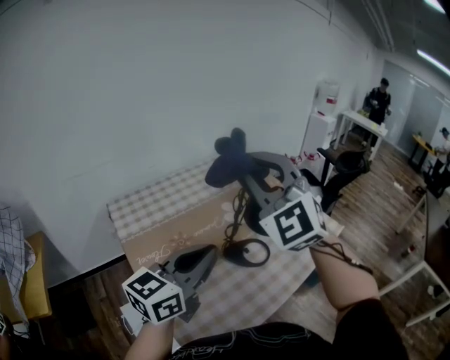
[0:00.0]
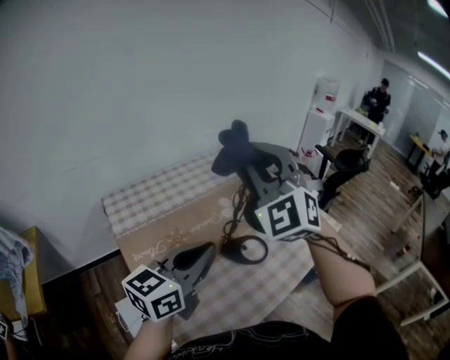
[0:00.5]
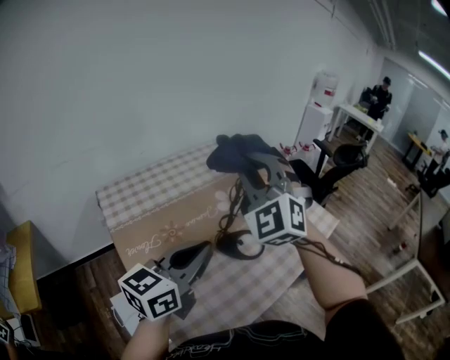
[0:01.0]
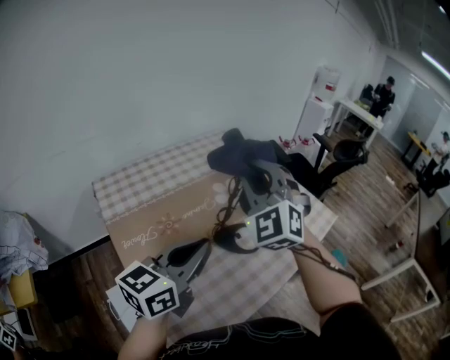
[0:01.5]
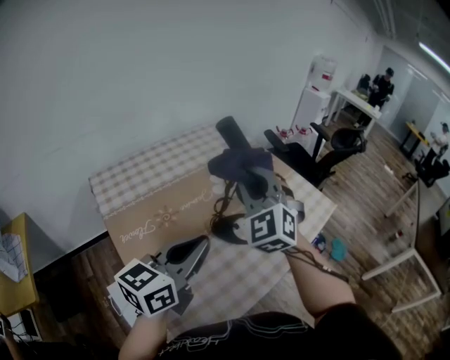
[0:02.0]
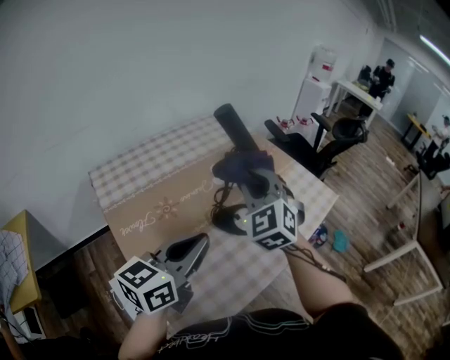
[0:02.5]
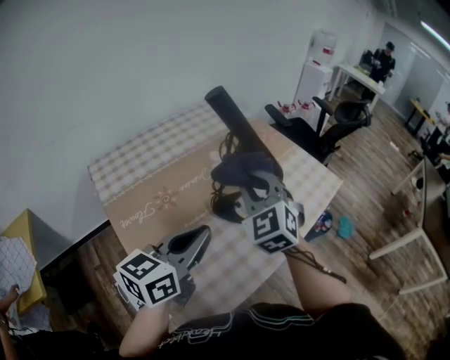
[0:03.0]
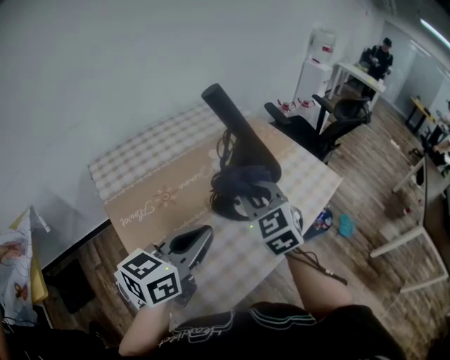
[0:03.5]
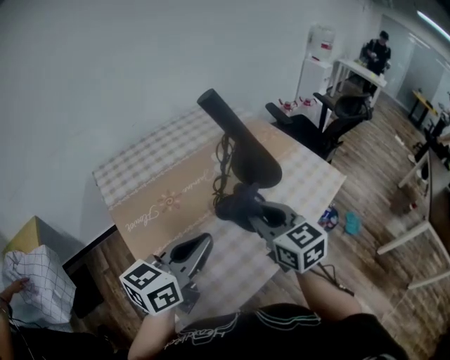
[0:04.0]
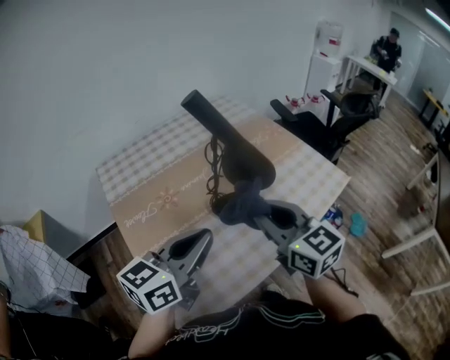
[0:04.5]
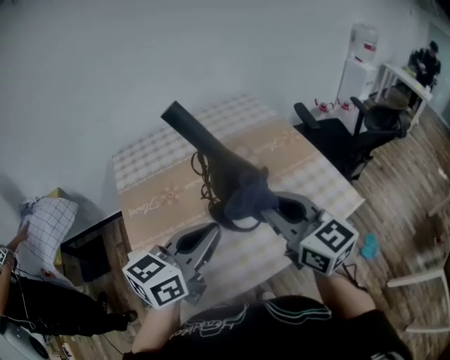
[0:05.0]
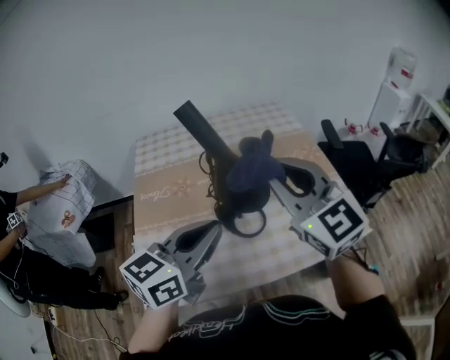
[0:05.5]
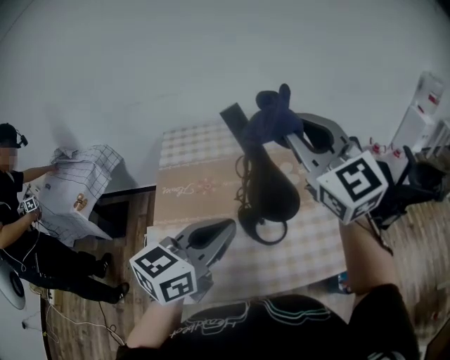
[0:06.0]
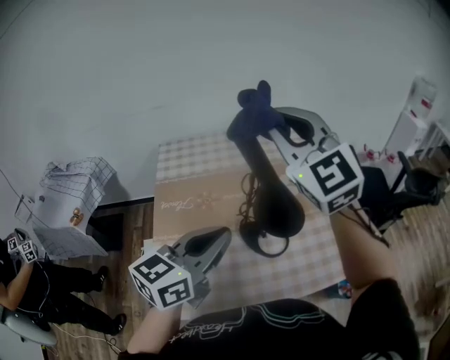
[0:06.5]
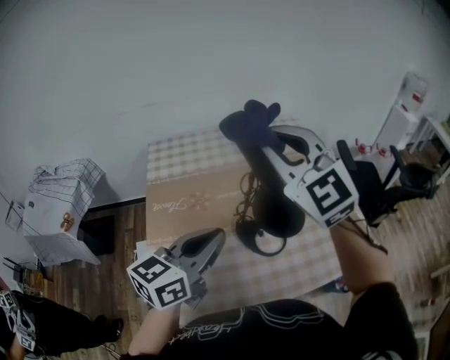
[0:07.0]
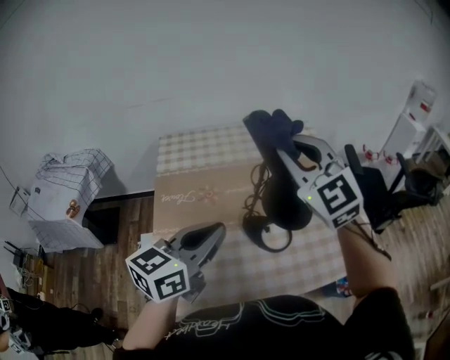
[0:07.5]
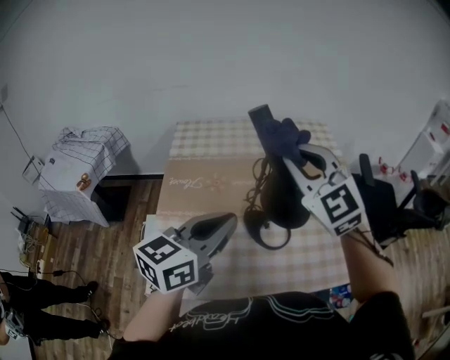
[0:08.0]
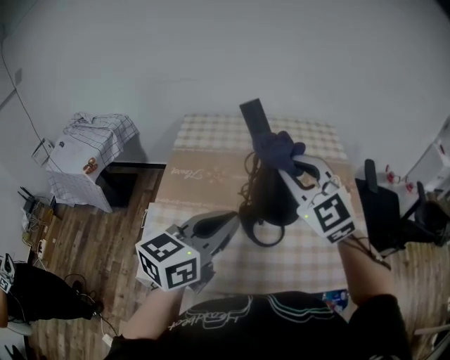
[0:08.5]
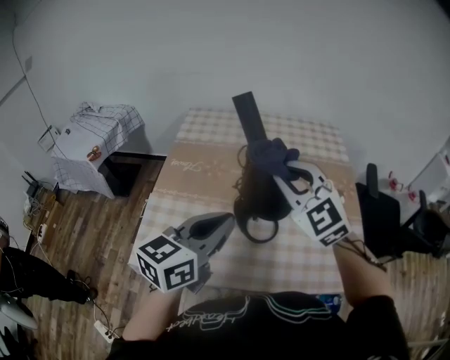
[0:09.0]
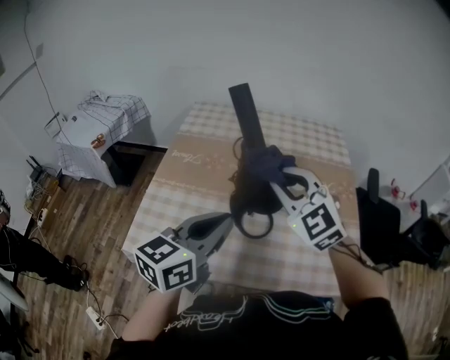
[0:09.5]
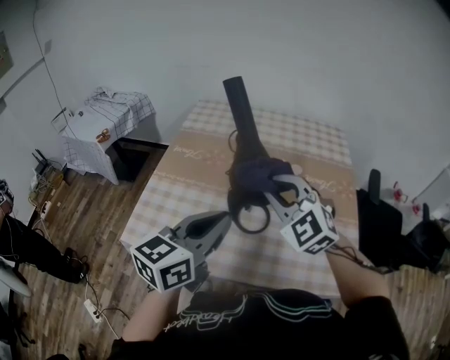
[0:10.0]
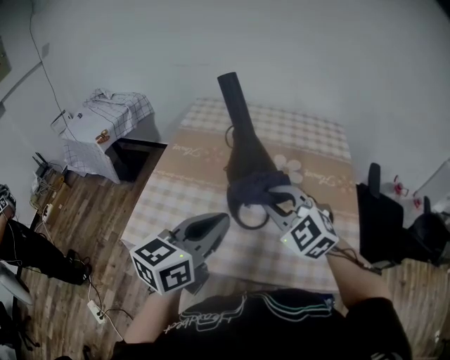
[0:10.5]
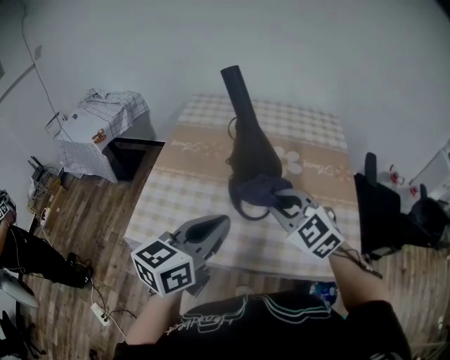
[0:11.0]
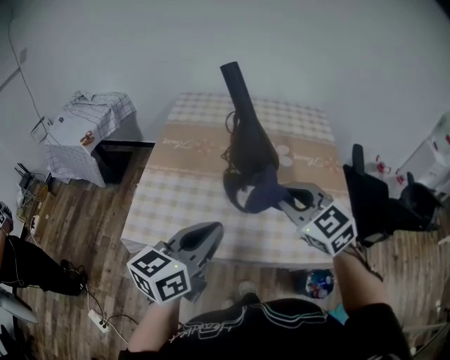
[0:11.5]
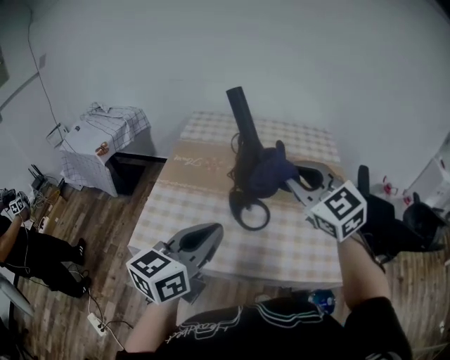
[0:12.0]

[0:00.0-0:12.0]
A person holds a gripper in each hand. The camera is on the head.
0:00.0 to 0:02.0: The left gripper moves downward, some 5 cm, while the right gripper heads downward, covering roughly 15 cm.
0:02.0 to 0:04.0: The right gripper moves downward, backward and to the right, approximately 15 cm, and twists approximately 50 degrees clockwise, seen from behind. Meanwhile the left gripper changes place by about 5 cm.
0:04.0 to 0:06.0: The right gripper is displaced upward by approximately 25 cm, and swivels about 40 degrees; the left gripper moves approximately 15 cm, and rotates approximately 30 degrees.
0:06.0 to 0:08.0: The right gripper travels downward by approximately 10 cm.
0:08.0 to 0:10.0: The right gripper goes approximately 15 cm downward, backward and to the right, and swivels roughly 20 degrees. The left gripper shifts approximately 15 cm to the right and backward.
0:10.0 to 0:12.0: The right gripper travels upward by approximately 10 cm, and turns by approximately 20 degrees. The left gripper goes approximately 5 cm backward.

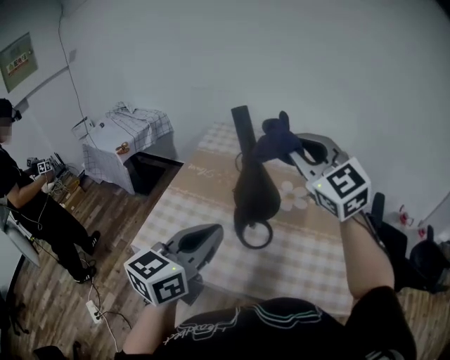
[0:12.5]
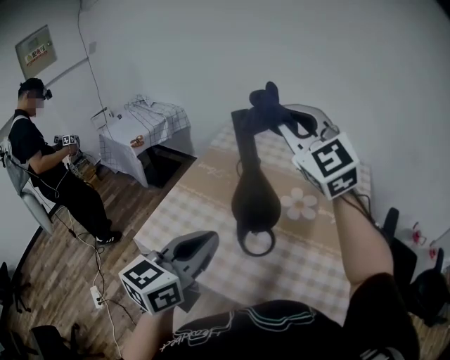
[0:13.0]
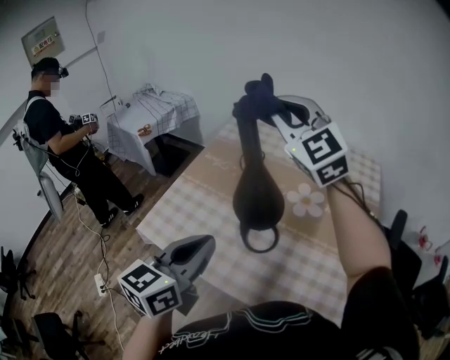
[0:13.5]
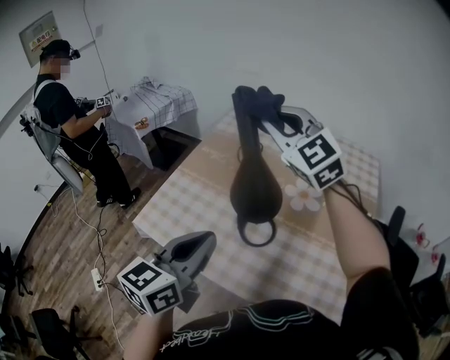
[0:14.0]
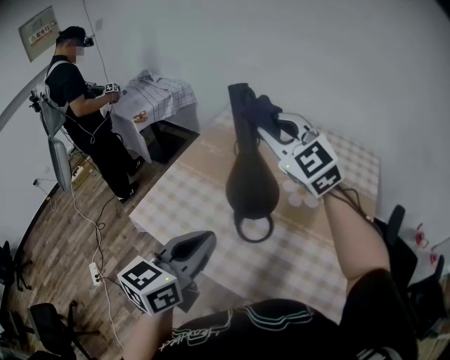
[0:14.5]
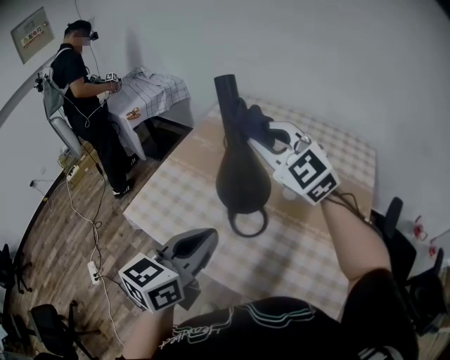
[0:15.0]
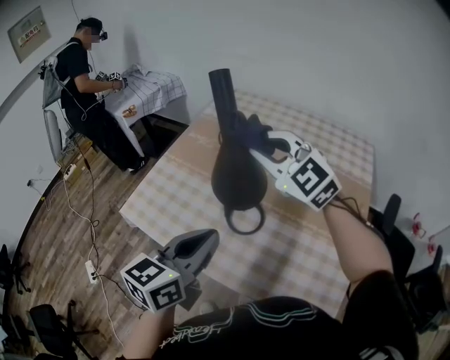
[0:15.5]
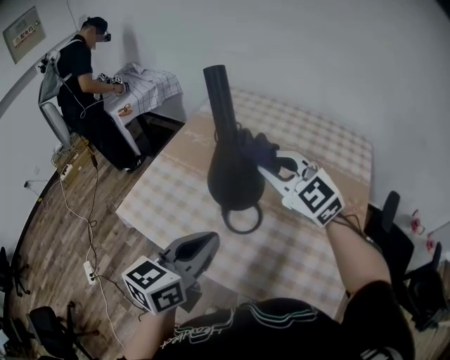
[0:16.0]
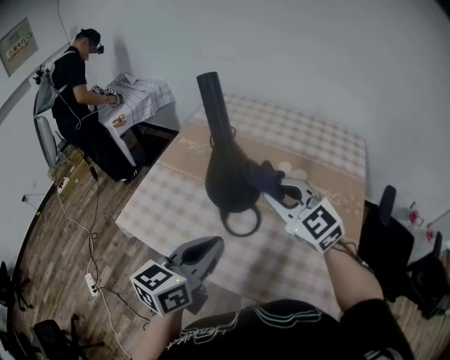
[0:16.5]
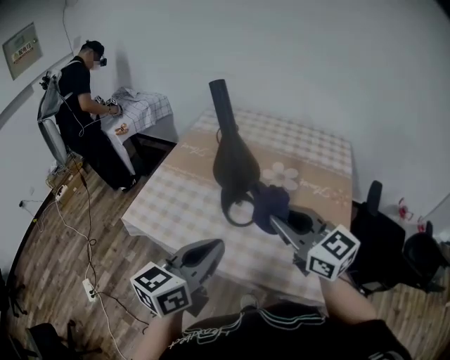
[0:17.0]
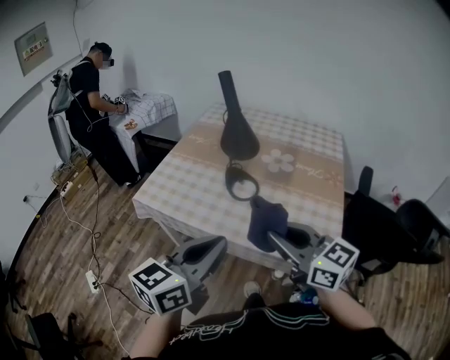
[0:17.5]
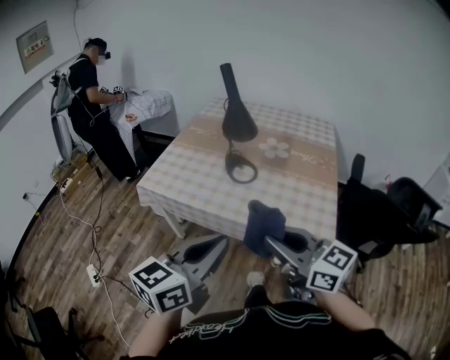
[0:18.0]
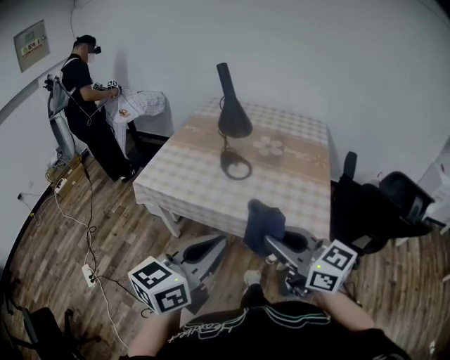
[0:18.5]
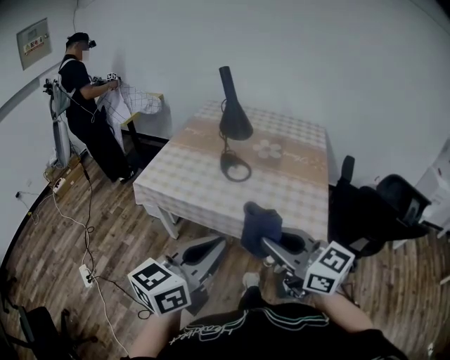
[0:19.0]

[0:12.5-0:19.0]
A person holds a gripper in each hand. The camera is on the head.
0:12.5 to 0:14.5: The left gripper shifts some 5 cm downward. The right gripper travels forward and downward by about 10 cm.
0:14.5 to 0:17.0: The left gripper goes roughly 10 cm backward. Meanwhile the right gripper travels backward by about 25 cm, and rotates about 40 degrees.
0:17.0 to 0:19.0: The two grippers go approximately 20 cm backward.

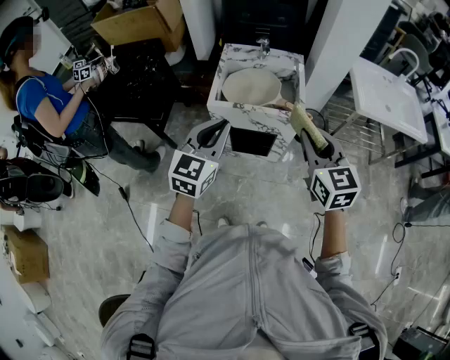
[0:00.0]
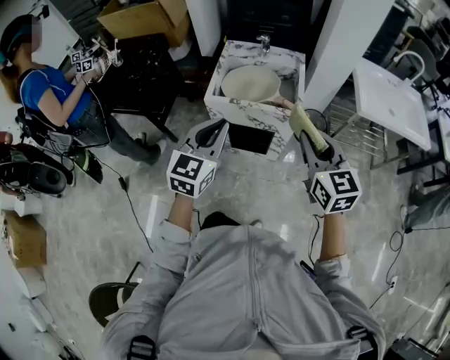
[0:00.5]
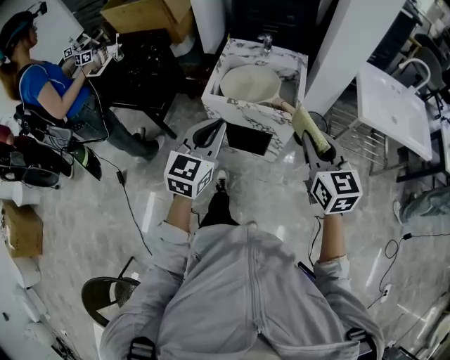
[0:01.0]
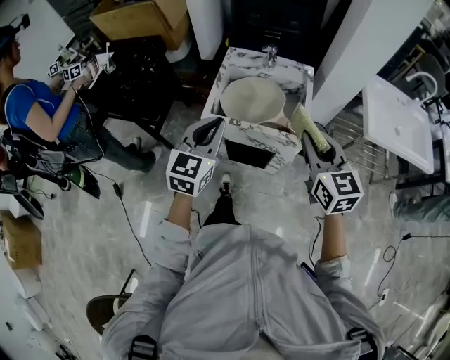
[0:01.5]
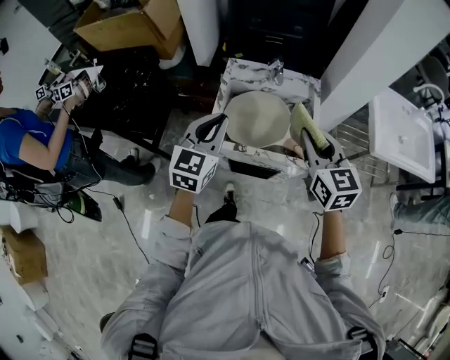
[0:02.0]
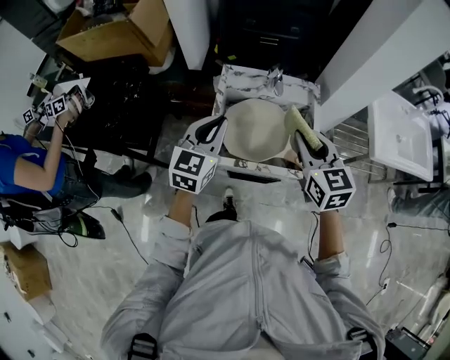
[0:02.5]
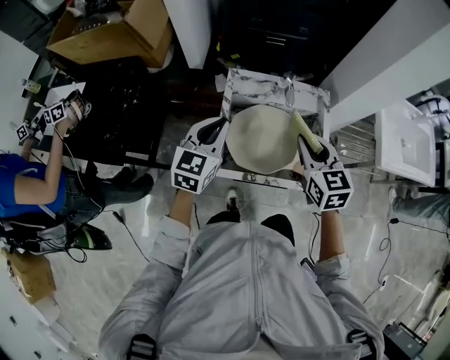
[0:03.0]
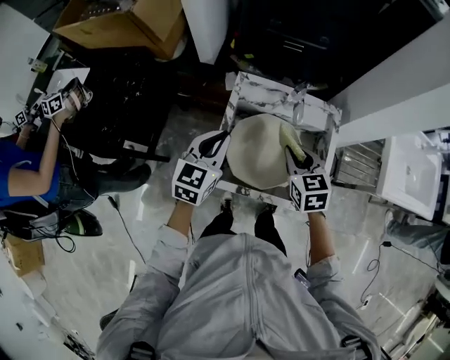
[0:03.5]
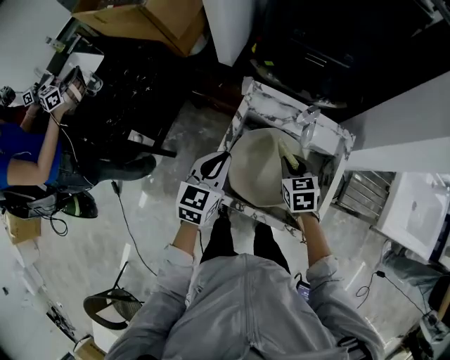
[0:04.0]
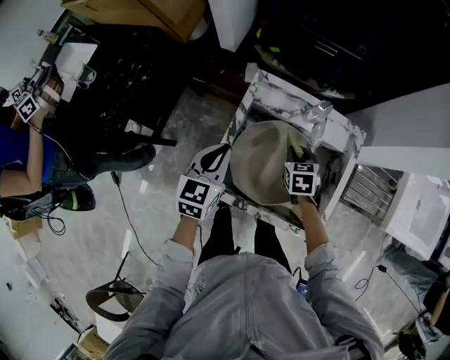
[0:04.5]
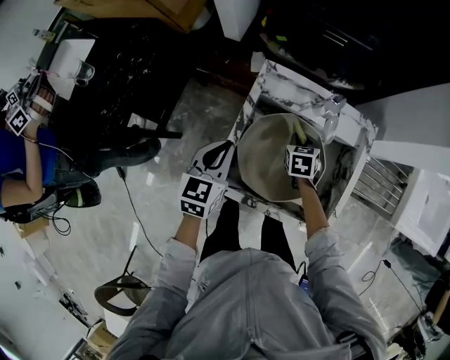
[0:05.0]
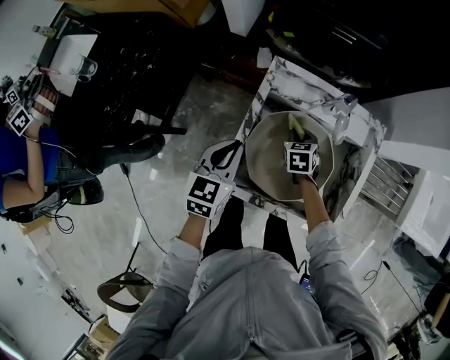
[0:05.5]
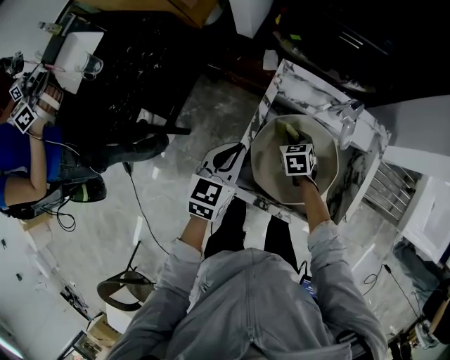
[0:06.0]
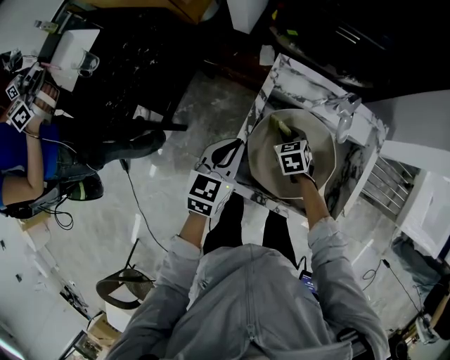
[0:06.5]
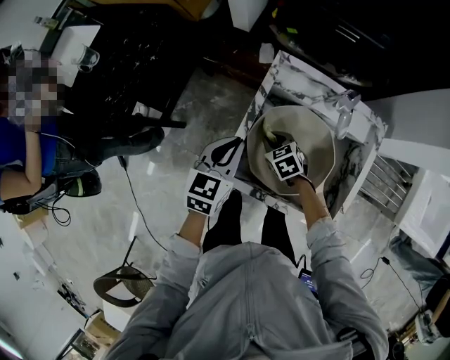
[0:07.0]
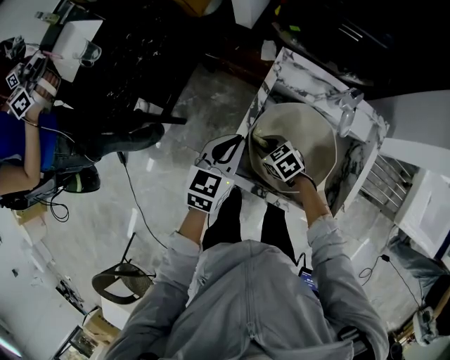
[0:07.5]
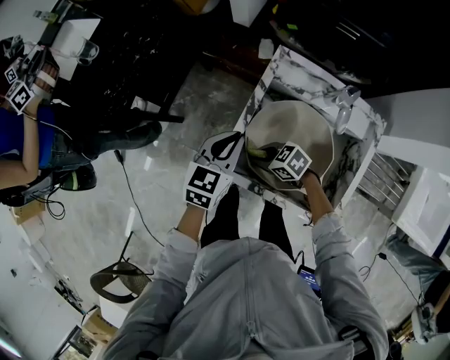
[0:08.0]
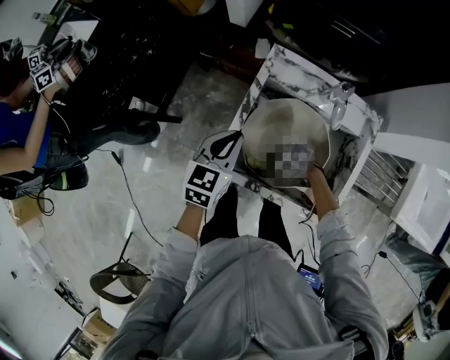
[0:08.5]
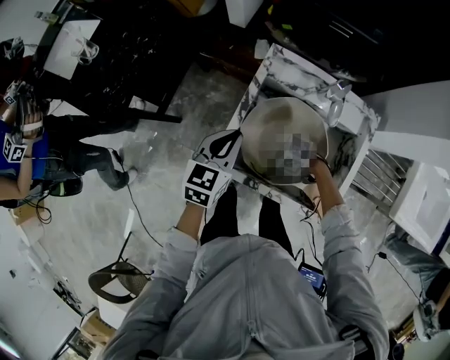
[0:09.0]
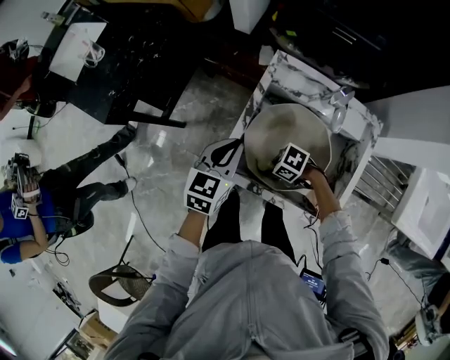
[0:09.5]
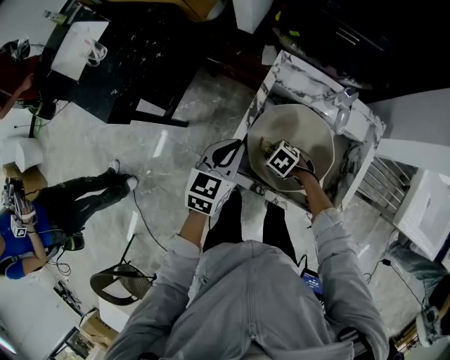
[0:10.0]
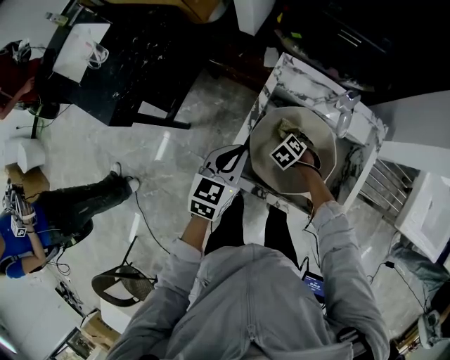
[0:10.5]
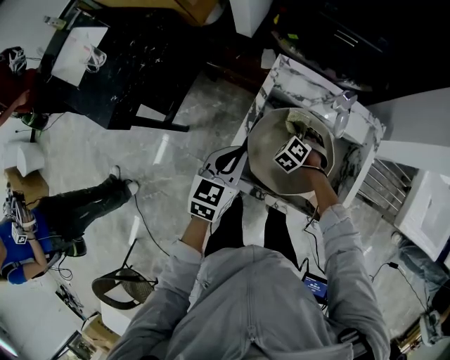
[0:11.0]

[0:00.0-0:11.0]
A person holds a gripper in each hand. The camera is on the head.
0:00.0 to 0:02.0: Both grippers move forward, about 25 cm.
0:02.0 to 0:03.5: Both grippers move forward and downward, roughly 25 cm. The right gripper swivels roughly 20 degrees.
0:03.5 to 0:05.5: The left gripper heads downward, covering about 10 cm. Meanwhile the right gripper goes some 30 cm downward and forward.
0:05.5 to 0:07.5: The right gripper moves about 15 cm, and rotates about 40 degrees.
0:07.5 to 0:09.0: The right gripper shifts by approximately 15 cm, and changes its angle by approximately 50 degrees.
0:09.0 to 0:11.0: The right gripper moves about 25 cm, and swivels roughly 80 degrees.
